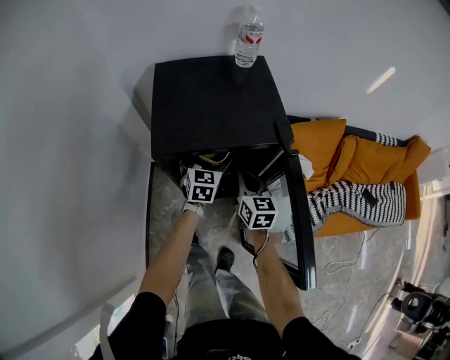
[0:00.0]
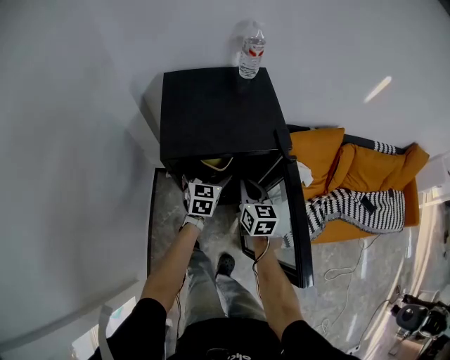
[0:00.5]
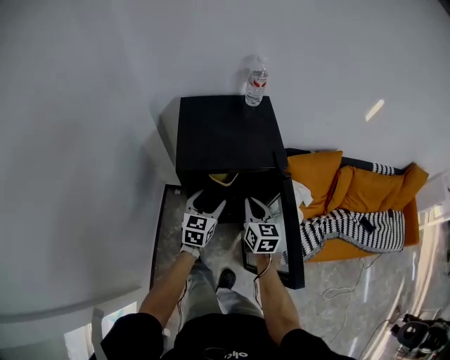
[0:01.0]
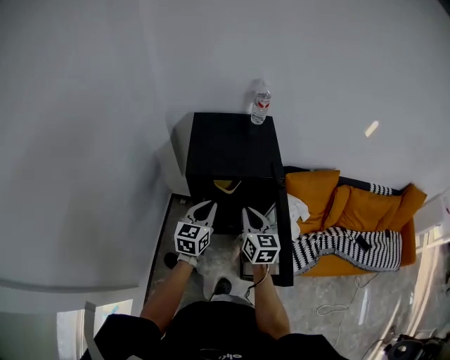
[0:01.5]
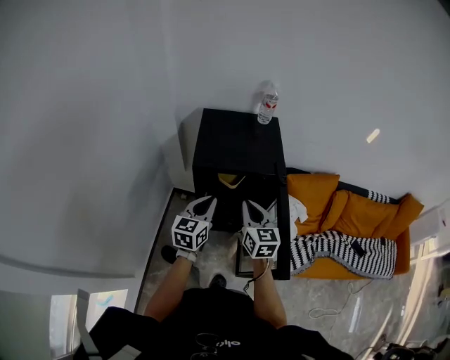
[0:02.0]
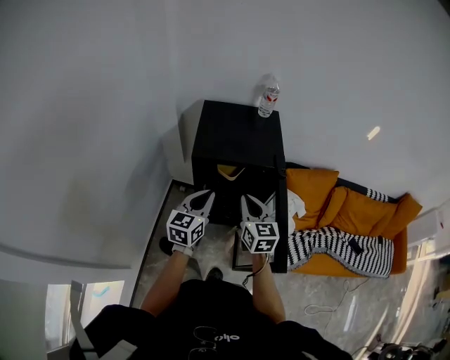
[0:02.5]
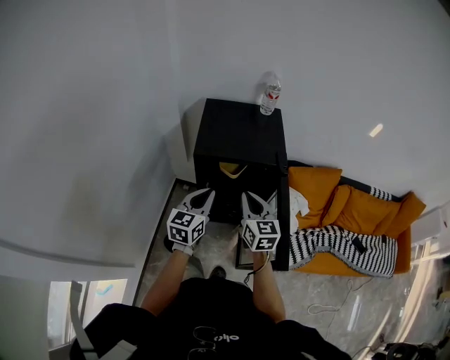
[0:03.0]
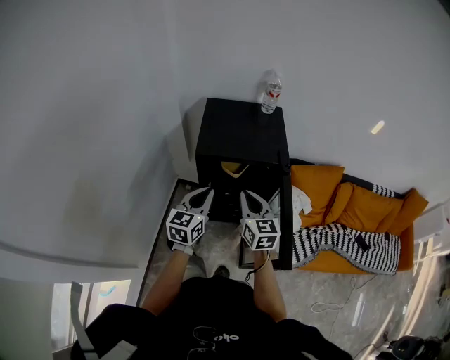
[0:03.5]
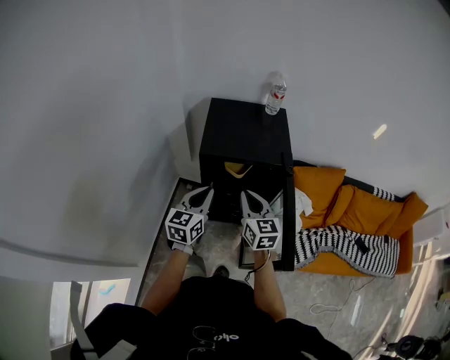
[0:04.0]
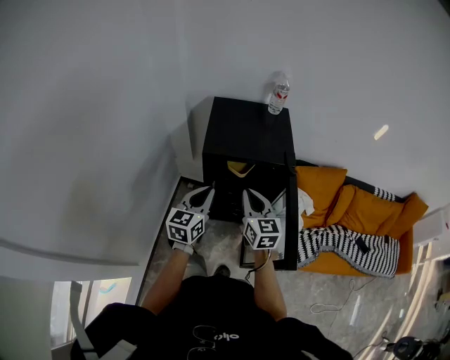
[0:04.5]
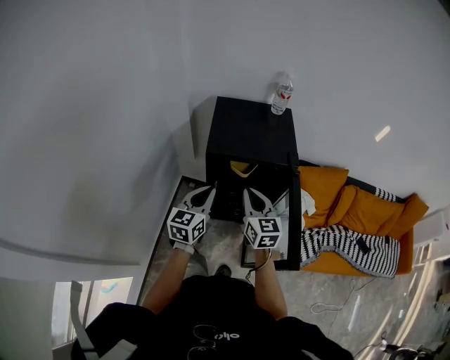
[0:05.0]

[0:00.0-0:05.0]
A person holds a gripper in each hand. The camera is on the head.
0:00.0 to 0:02.5: The left gripper goes approximately 30 cm backward and upward, changes its angle by roughly 20 degrees, and closes up. Meanwhile the right gripper moves upward and backward, approximately 25 cm.
0:02.5 to 0:05.0: The grippers move only a little.

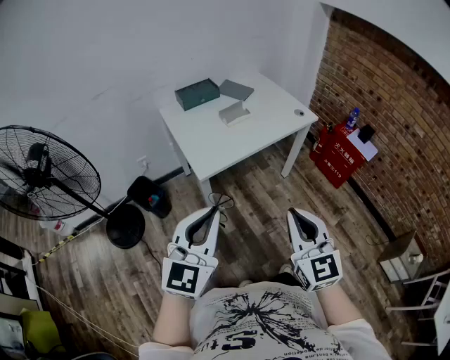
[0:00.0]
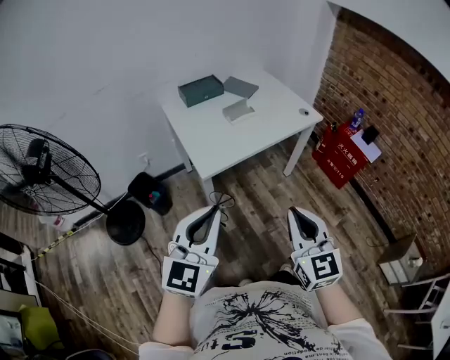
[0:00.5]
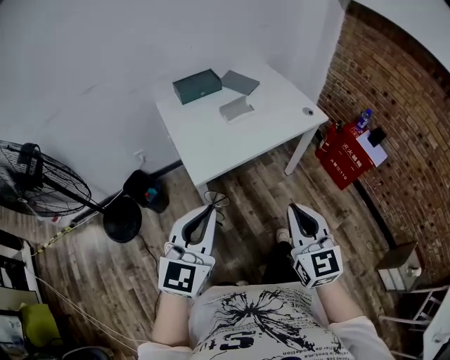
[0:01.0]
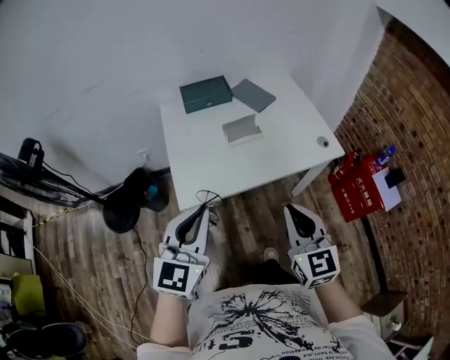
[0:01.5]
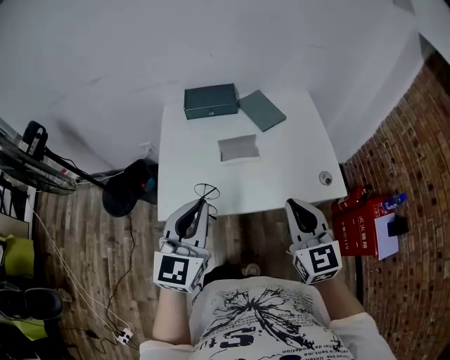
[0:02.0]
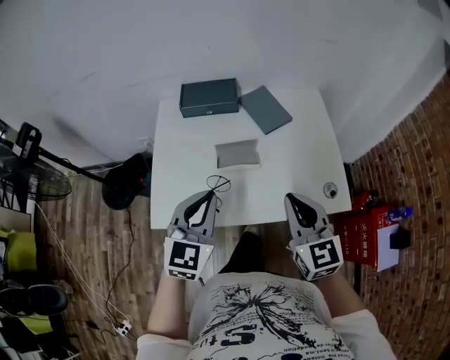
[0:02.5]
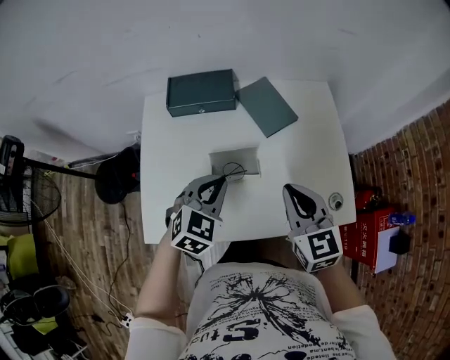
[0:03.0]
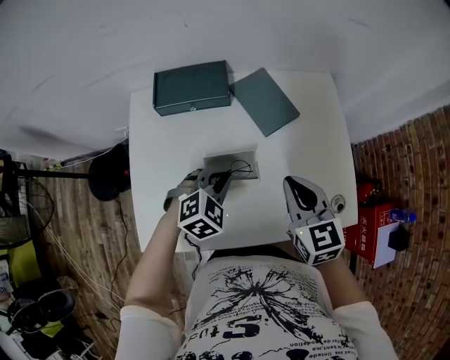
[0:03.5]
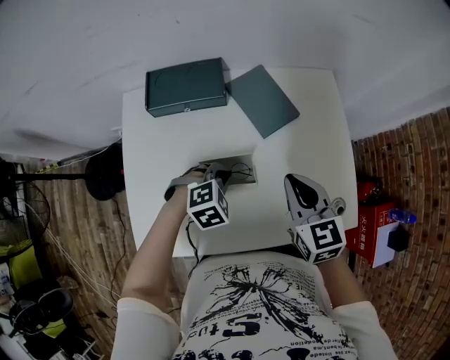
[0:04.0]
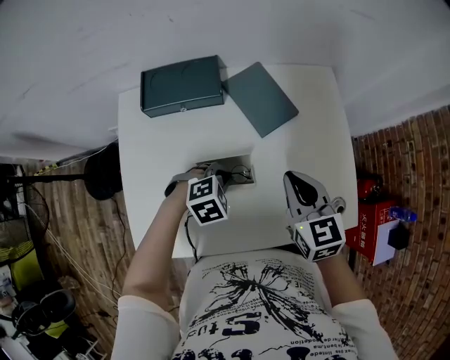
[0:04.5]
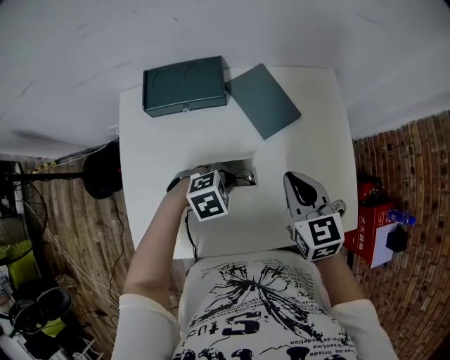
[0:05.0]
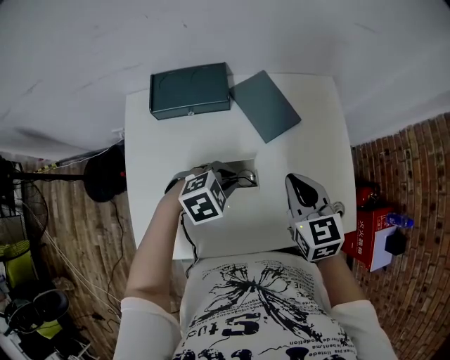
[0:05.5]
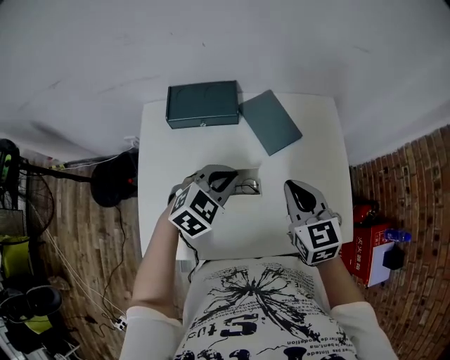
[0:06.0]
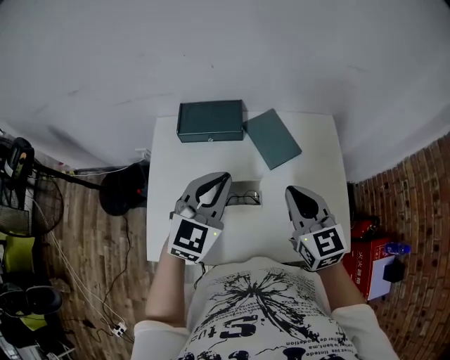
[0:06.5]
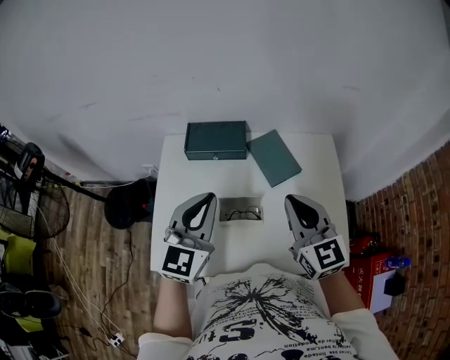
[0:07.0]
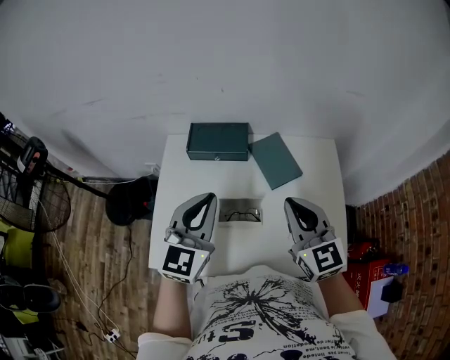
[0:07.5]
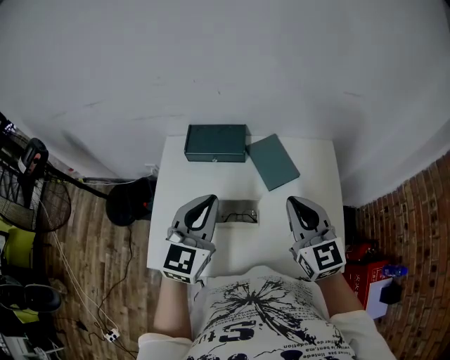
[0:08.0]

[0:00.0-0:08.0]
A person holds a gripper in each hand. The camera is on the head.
0:00.0 to 0:02.0: The pair of grippers is taken approximately 50 cm. The right gripper swivels approximately 30 degrees, while the left gripper rotates about 30 degrees.
0:02.0 to 0:04.0: Both grippers travel together forward and downward, about 35 cm. The left gripper tilts its fingers about 50 degrees downward.
0:04.0 to 0:06.0: The left gripper is displaced upward by about 15 cm, and swivels roughly 30 degrees.
0:06.0 to 0:08.0: Both grippers travel together upward, some 15 cm. The left gripper changes its angle by approximately 40 degrees.

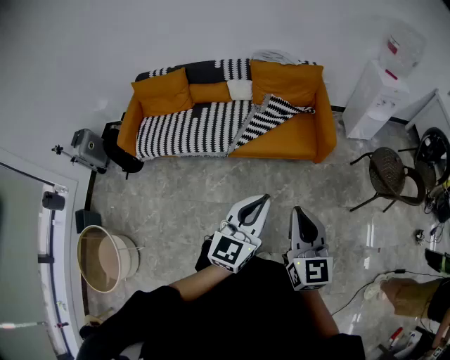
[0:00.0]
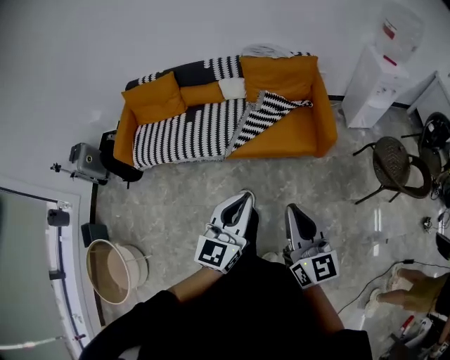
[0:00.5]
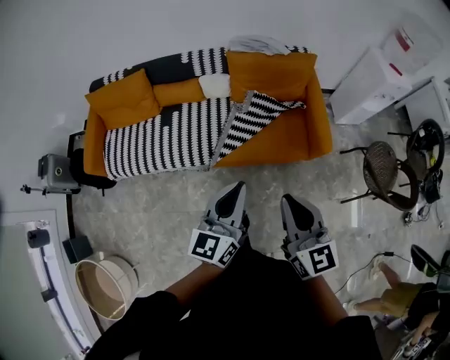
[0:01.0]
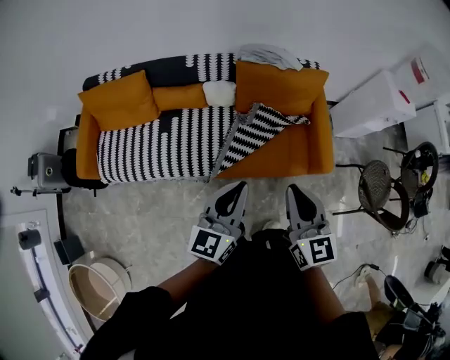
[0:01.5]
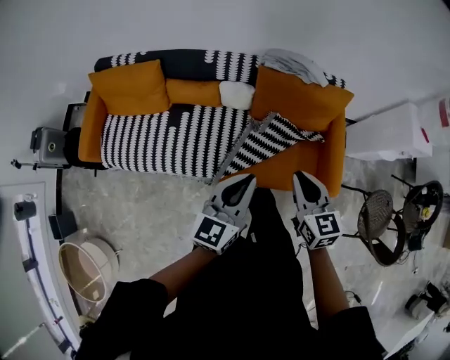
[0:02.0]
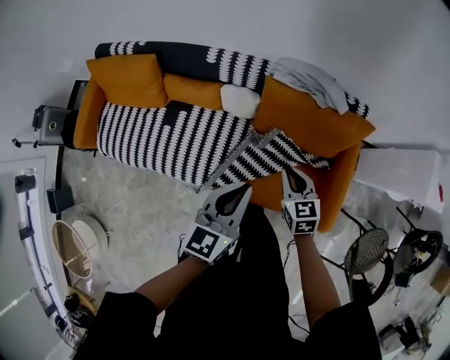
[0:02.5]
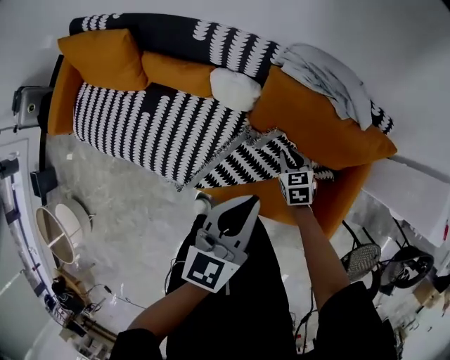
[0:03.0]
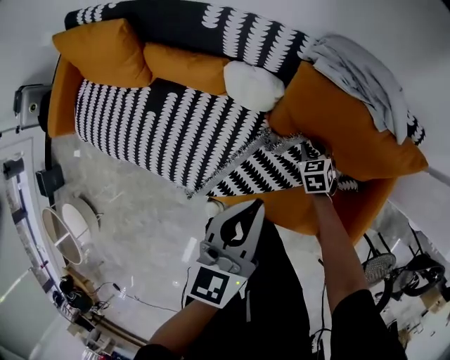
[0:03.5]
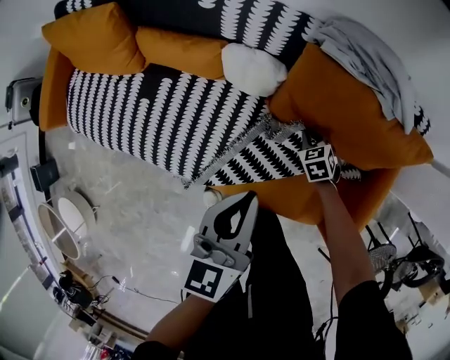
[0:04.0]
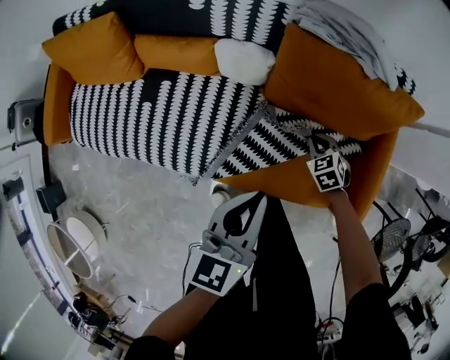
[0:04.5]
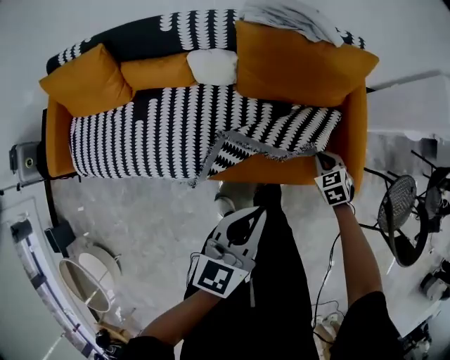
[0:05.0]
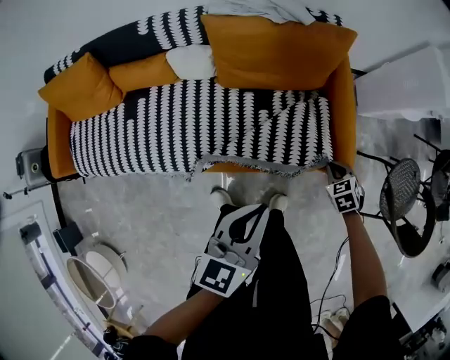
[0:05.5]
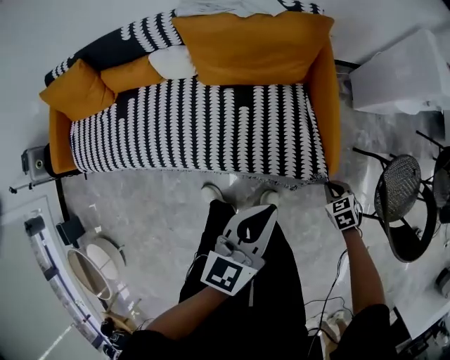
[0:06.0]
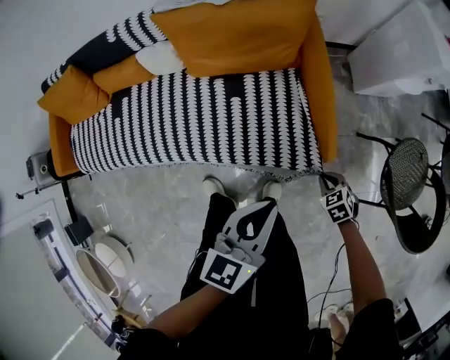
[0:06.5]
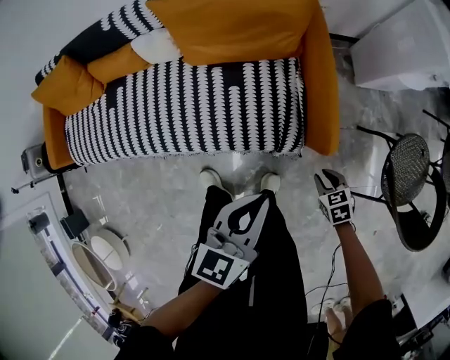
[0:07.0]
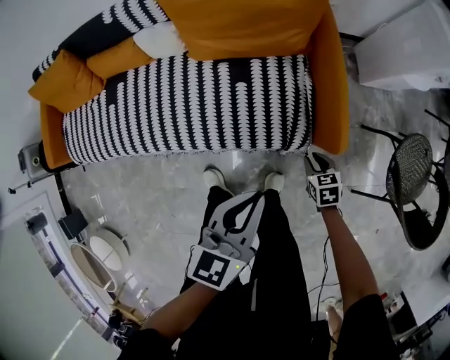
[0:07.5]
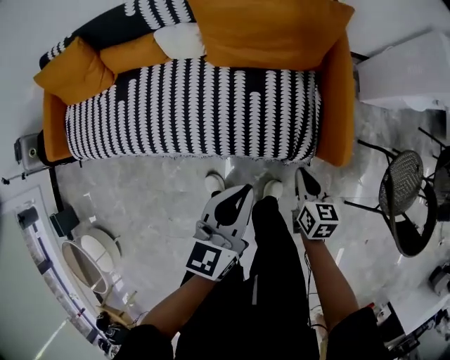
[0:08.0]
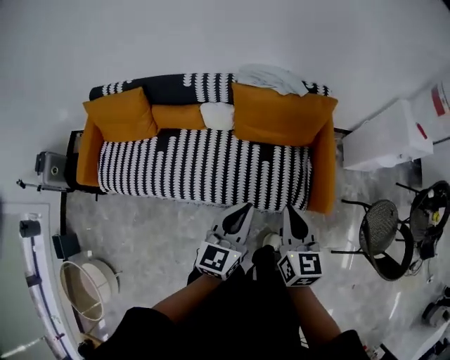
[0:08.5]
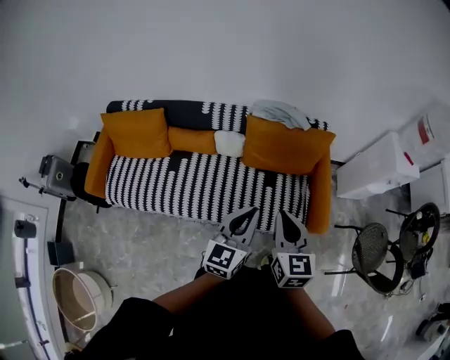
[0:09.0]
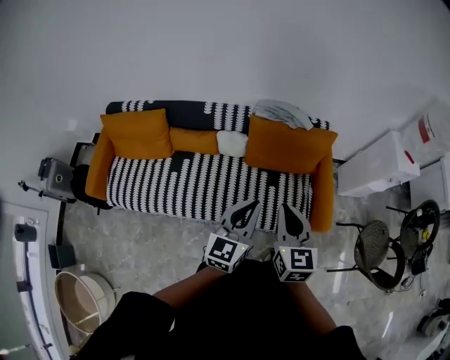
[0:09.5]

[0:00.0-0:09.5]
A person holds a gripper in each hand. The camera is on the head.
0:00.0 to 0:02.0: The two grippers travel together, forward, approximately 50 cm. The right gripper swivels roughly 20 degrees.
0:02.0 to 0:04.0: The left gripper moves downward and forward, about 35 cm, and changes its angle by about 30 degrees. Meanwhile the right gripper goes about 60 cm downward and forward, and angles its fingers downward, by about 40 degrees.
0:04.0 to 0:05.5: The left gripper changes place by approximately 30 cm, and changes its angle by some 30 degrees; the right gripper ends up some 40 cm from where it was.
0:05.5 to 0:07.5: The right gripper shifts about 10 cm downward and backward, and rotates roughly 20 degrees. Meanwhile the left gripper goes approximately 10 cm to the right and downward.
0:07.5 to 0:09.5: The left gripper is displaced upward and to the left by about 35 cm, and changes its angle by roughly 20 degrees. The right gripper shifts some 70 cm upward and to the left, and angles its fingers upward, by approximately 40 degrees.

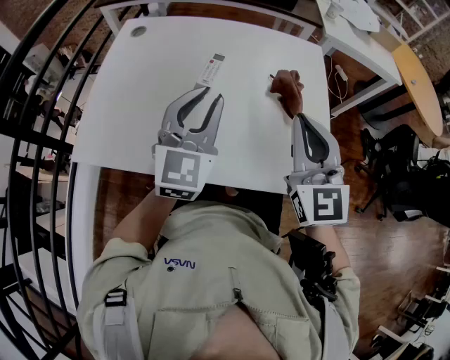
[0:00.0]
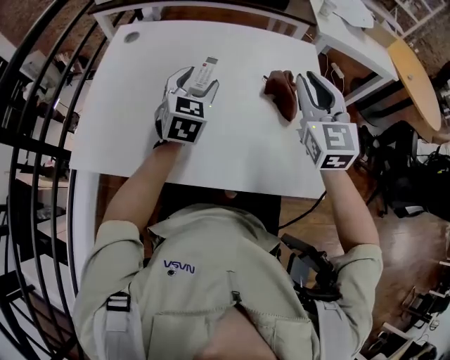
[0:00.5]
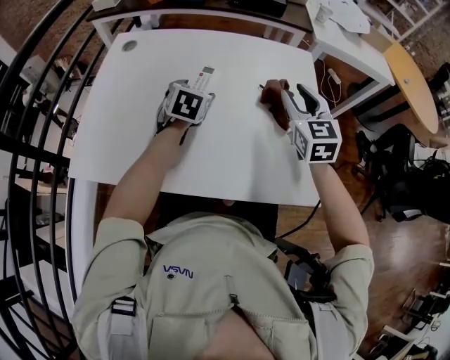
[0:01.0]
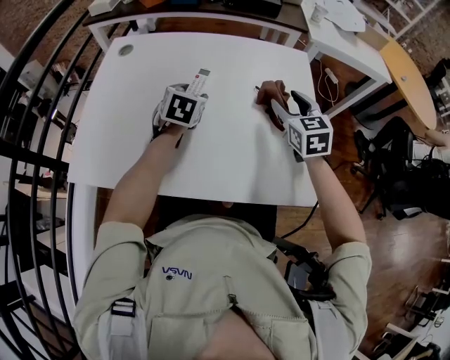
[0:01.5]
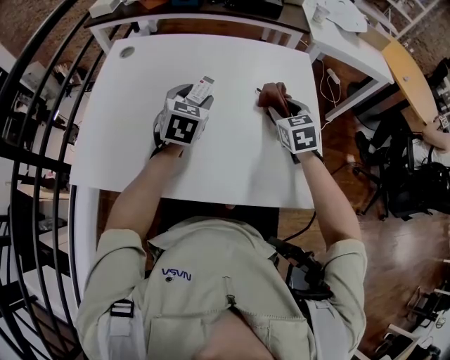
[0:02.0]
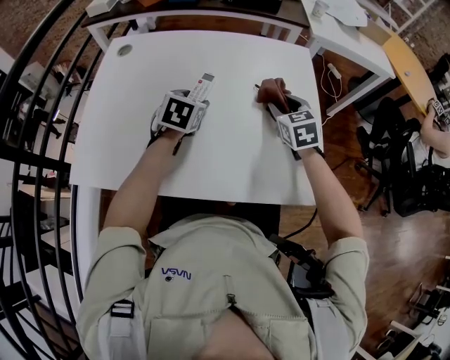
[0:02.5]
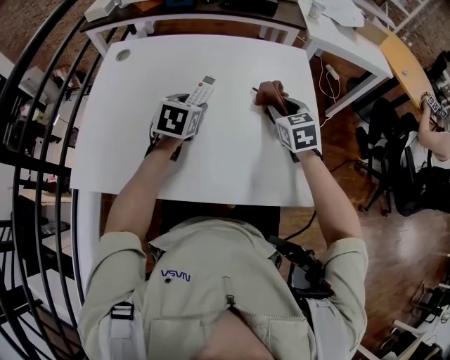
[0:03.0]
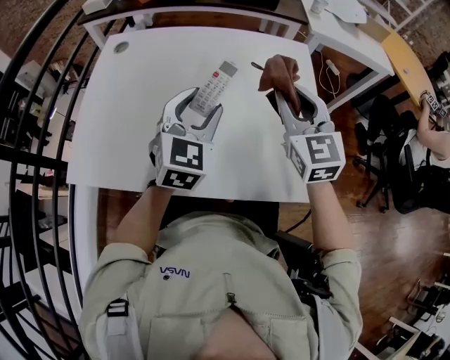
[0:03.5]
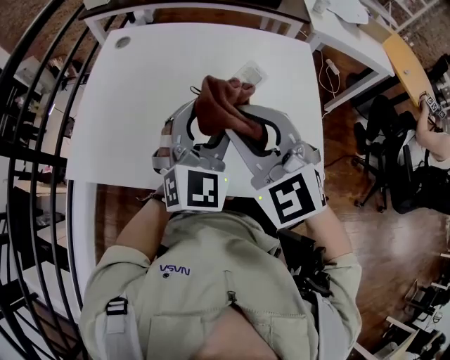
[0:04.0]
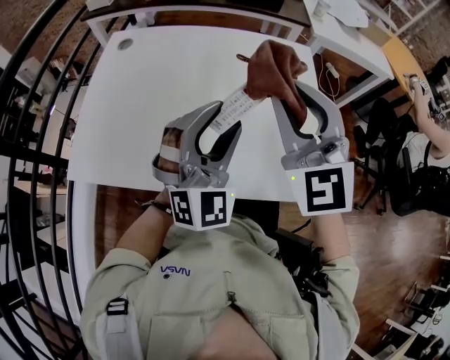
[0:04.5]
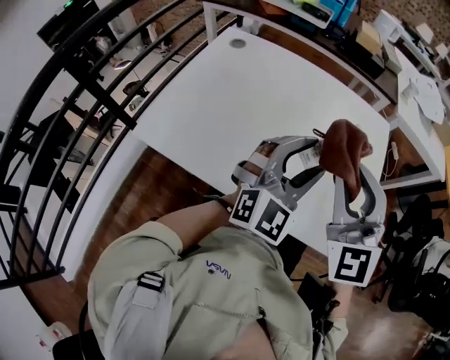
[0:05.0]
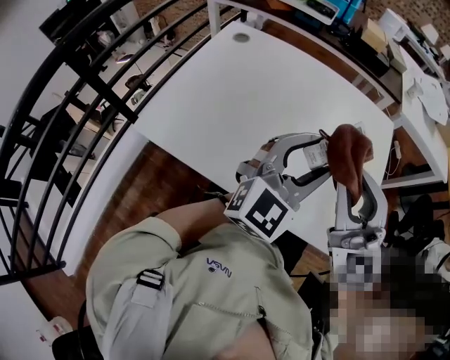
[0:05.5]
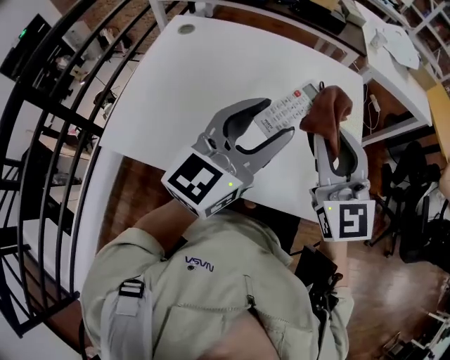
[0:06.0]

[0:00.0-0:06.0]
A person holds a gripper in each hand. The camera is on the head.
0:00.0 to 0:02.0: The right gripper moves downward and forward, about 25 cm, tips its fingers downward by some 30 degrees, and opens up. The left gripper heads forward and downward, covering some 15 cm, rotates some 30 degrees, and opens.
0:02.0 to 0:04.0: The right gripper is displaced backward, upward and to the left by some 30 cm, and rotates about 40 degrees. The left gripper travels backward and upward by roughly 15 cm, and turns by roughly 30 degrees.
0:04.0 to 0:06.0: The right gripper shifts roughly 5 cm to the right, and rotates roughly 30 degrees. Meanwhile the left gripper goes approximately 5 cm upward, and changes its angle by some 40 degrees.
